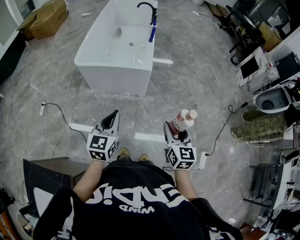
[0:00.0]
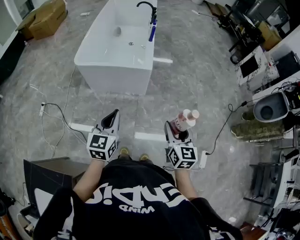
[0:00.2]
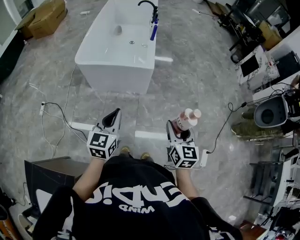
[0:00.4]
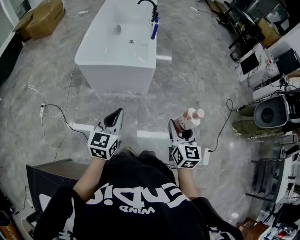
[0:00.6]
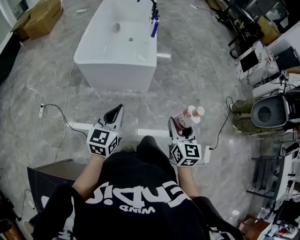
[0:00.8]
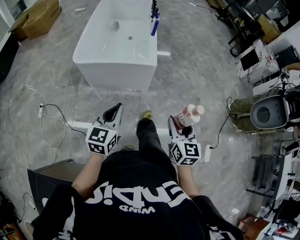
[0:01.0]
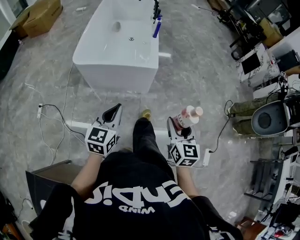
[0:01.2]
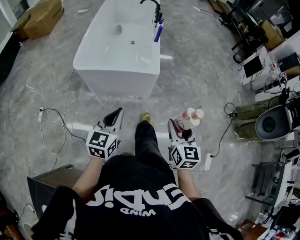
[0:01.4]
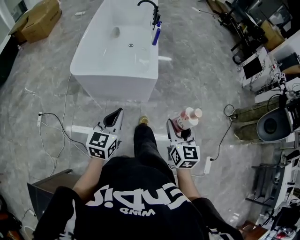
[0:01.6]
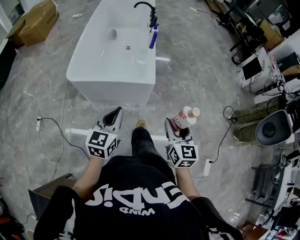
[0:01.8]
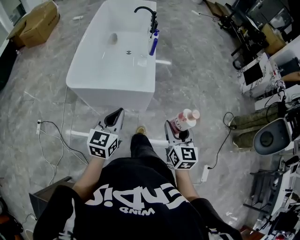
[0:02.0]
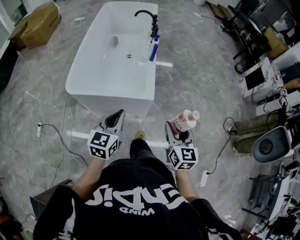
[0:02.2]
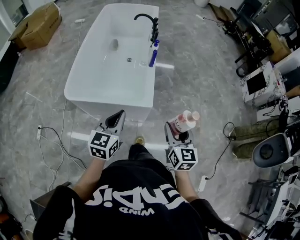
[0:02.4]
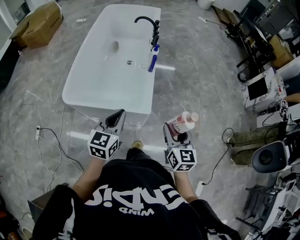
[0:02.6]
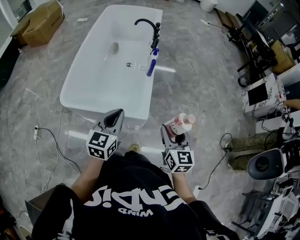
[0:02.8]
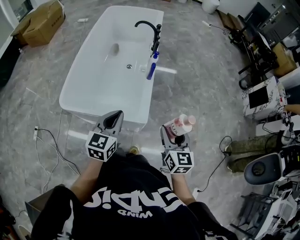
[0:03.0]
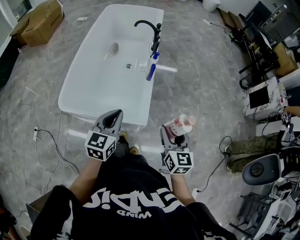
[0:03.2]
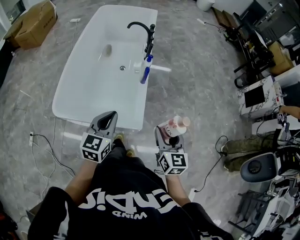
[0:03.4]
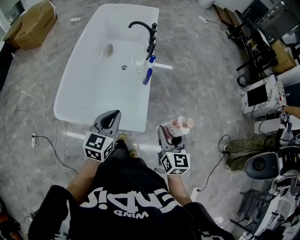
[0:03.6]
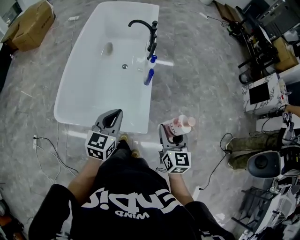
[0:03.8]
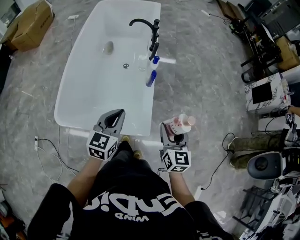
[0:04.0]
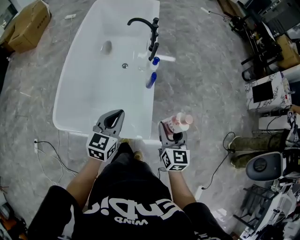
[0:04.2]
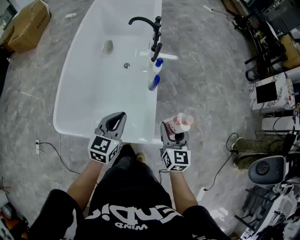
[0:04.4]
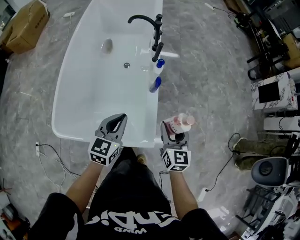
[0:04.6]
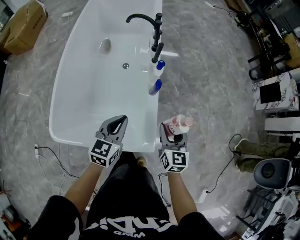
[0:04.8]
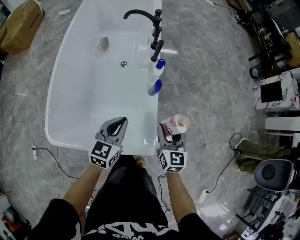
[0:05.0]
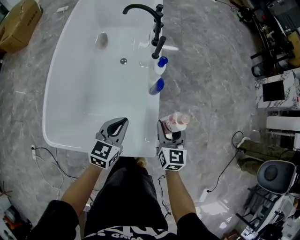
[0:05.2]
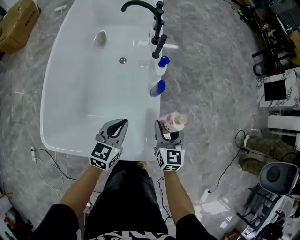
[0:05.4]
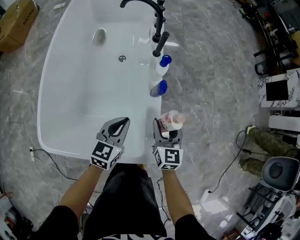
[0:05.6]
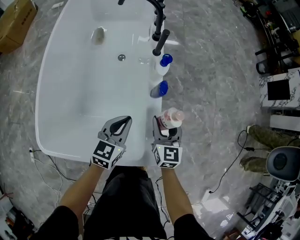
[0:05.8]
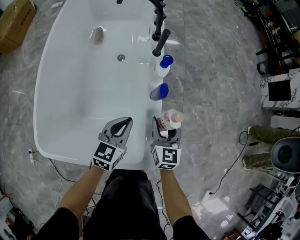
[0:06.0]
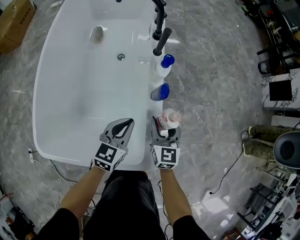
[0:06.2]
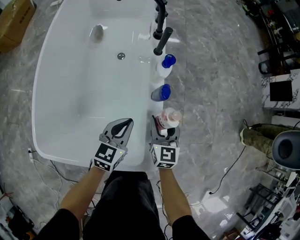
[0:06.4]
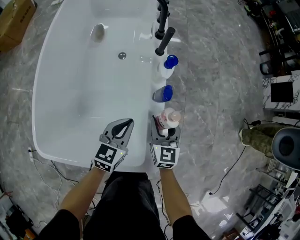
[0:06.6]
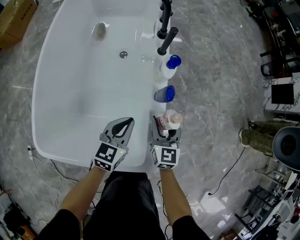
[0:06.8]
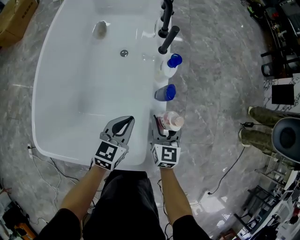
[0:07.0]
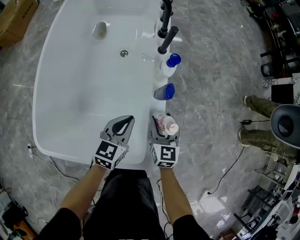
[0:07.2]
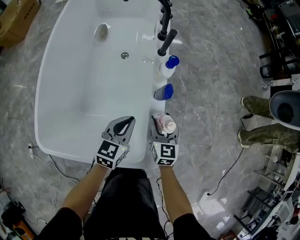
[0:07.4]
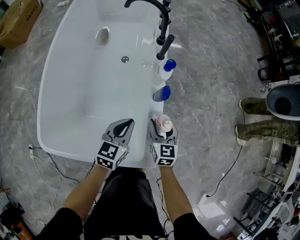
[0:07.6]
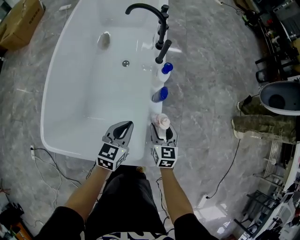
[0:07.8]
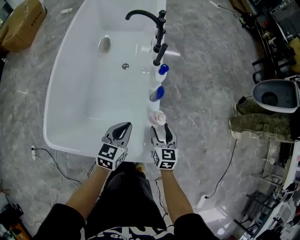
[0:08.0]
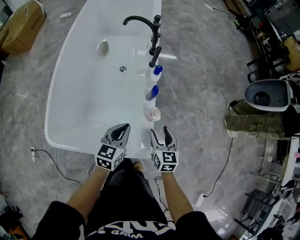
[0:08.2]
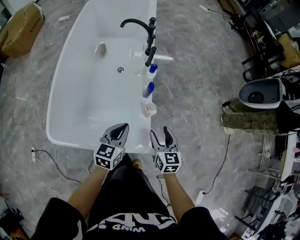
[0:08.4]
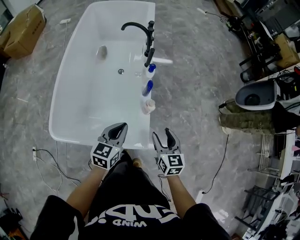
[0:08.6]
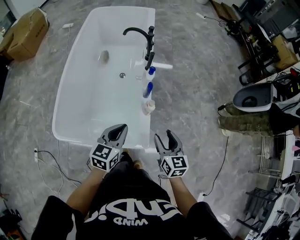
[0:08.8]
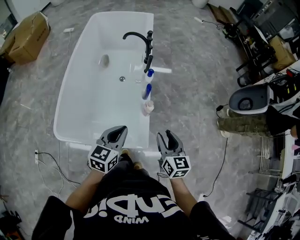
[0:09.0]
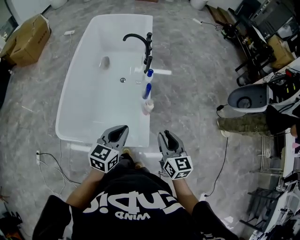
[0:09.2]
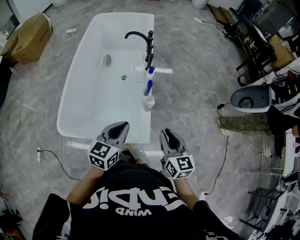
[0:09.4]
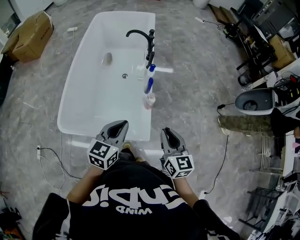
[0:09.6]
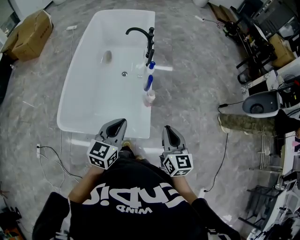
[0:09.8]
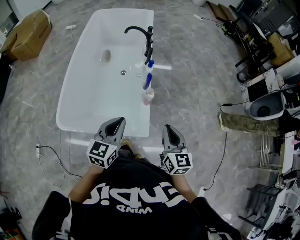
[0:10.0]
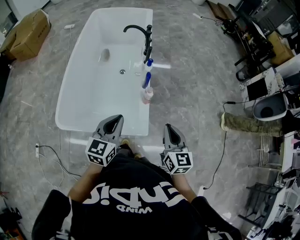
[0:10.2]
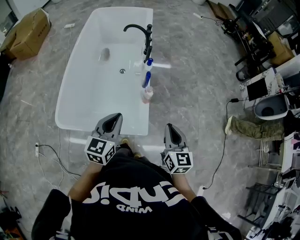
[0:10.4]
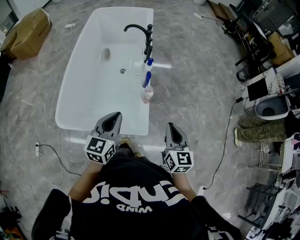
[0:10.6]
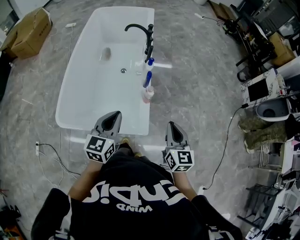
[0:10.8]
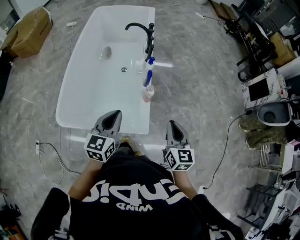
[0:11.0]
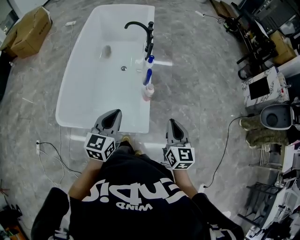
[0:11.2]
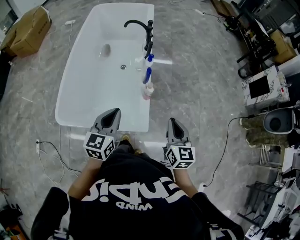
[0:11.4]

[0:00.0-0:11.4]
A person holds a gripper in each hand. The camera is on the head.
0:00.0 to 0:01.4: Both grippers travel together forward and to the left, some 10 cm.
0:01.4 to 0:02.8: Both grippers move forward, roughly 35 cm.
0:02.8 to 0:04.2: Both grippers travel together forward, about 20 cm.
0:04.2 to 0:05.6: The grippers both shift downward and forward by roughly 25 cm.
0:05.6 to 0:07.2: The right gripper is displaced downward by about 5 cm; the left gripper shifts by some 5 cm.
0:07.2 to 0:08.6: The grippers both shift upward and backward by approximately 20 cm.
0:08.6 to 0:10.0: The grippers both shift upward and backward by some 15 cm. The right gripper closes.
0:10.0 to 0:11.4: The grippers make only small movements.

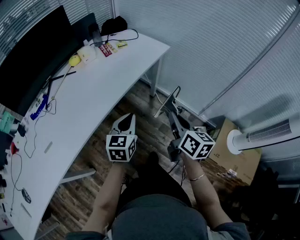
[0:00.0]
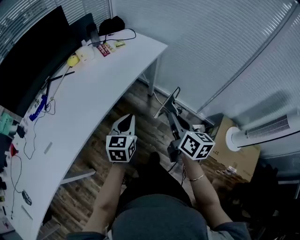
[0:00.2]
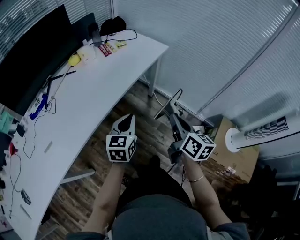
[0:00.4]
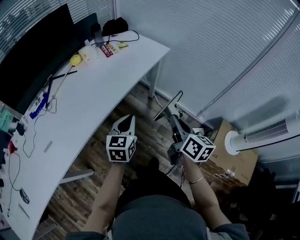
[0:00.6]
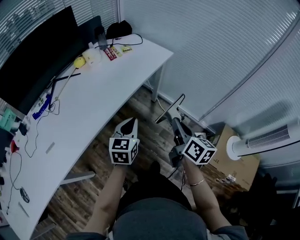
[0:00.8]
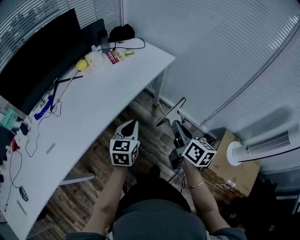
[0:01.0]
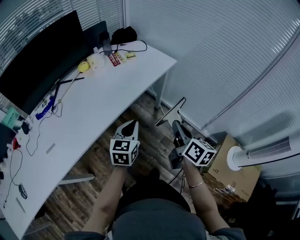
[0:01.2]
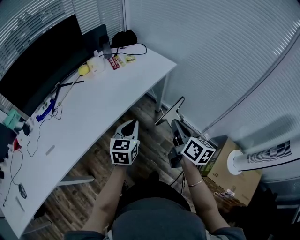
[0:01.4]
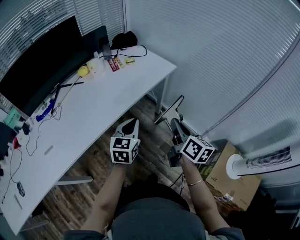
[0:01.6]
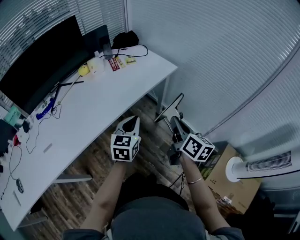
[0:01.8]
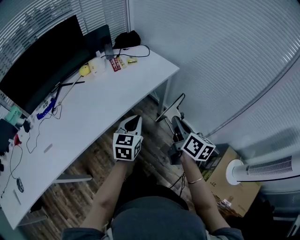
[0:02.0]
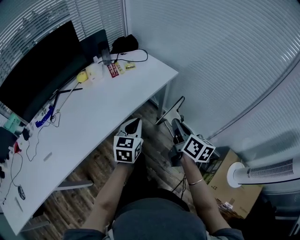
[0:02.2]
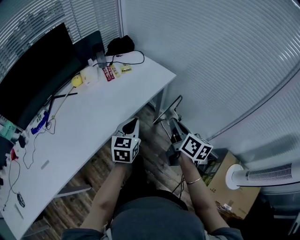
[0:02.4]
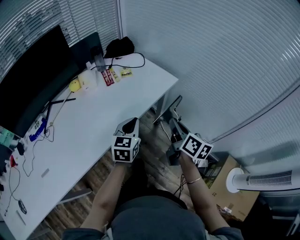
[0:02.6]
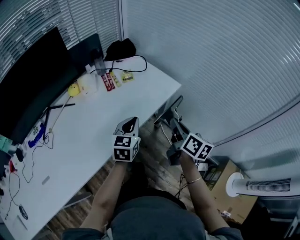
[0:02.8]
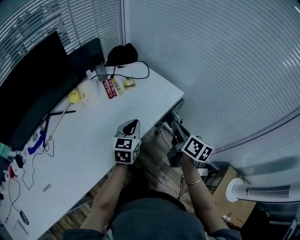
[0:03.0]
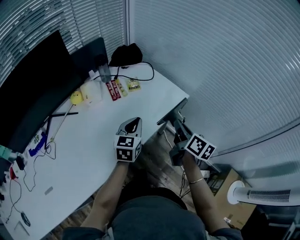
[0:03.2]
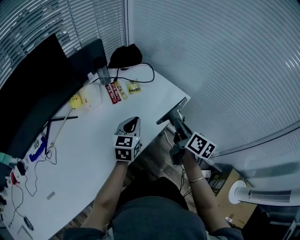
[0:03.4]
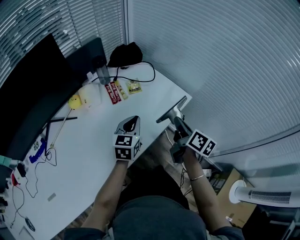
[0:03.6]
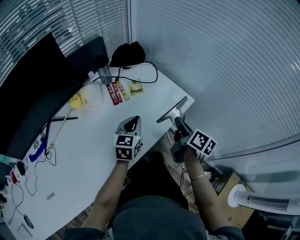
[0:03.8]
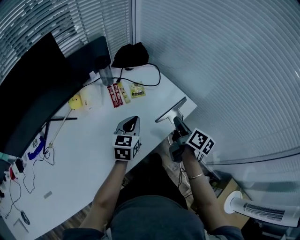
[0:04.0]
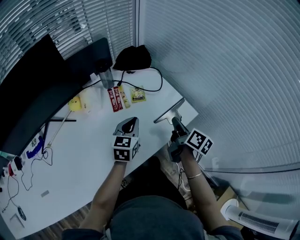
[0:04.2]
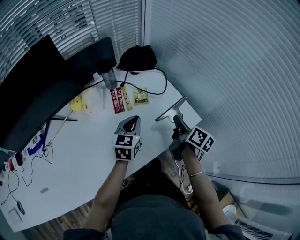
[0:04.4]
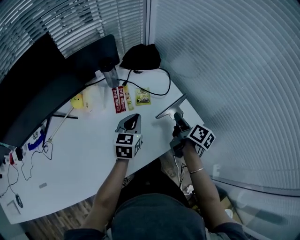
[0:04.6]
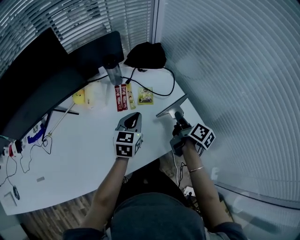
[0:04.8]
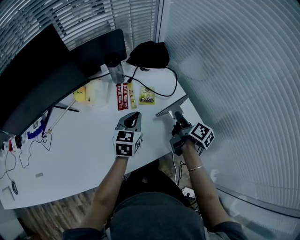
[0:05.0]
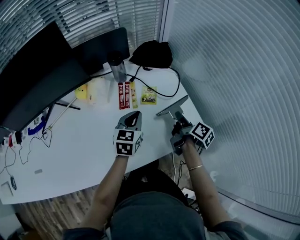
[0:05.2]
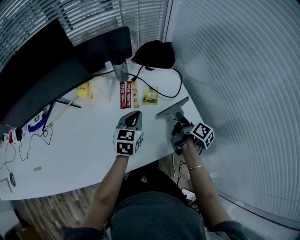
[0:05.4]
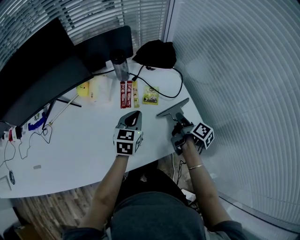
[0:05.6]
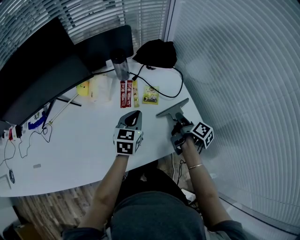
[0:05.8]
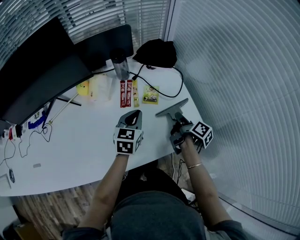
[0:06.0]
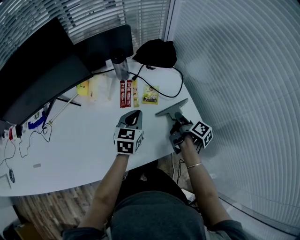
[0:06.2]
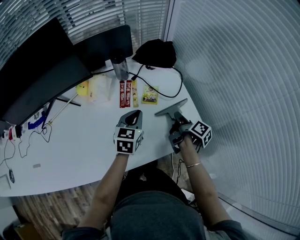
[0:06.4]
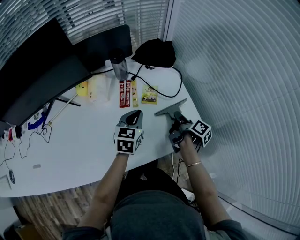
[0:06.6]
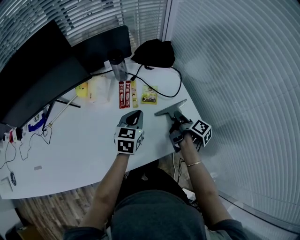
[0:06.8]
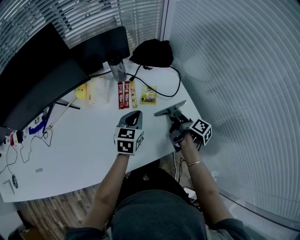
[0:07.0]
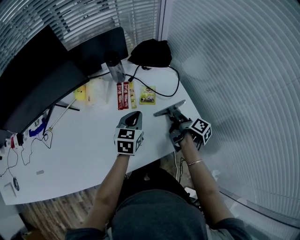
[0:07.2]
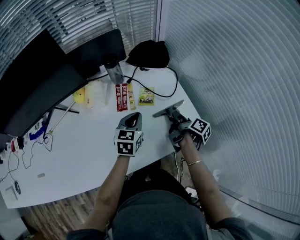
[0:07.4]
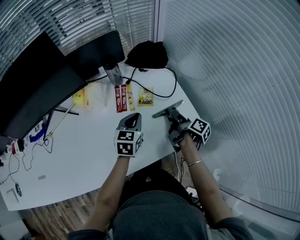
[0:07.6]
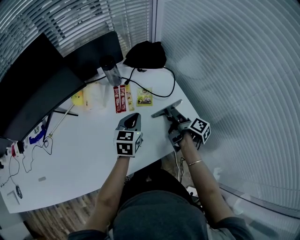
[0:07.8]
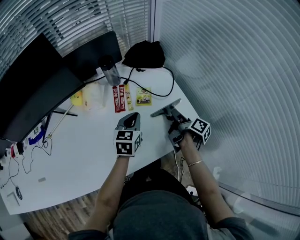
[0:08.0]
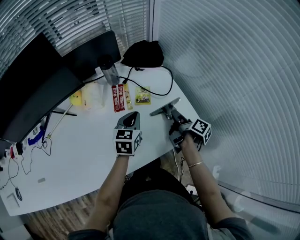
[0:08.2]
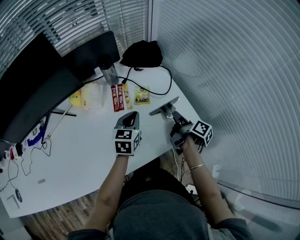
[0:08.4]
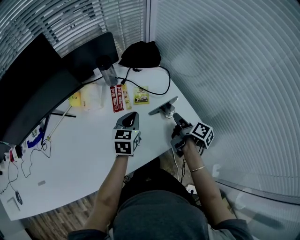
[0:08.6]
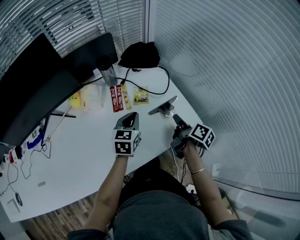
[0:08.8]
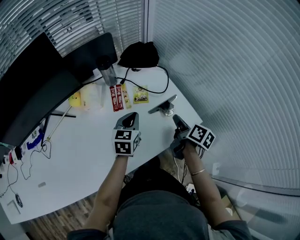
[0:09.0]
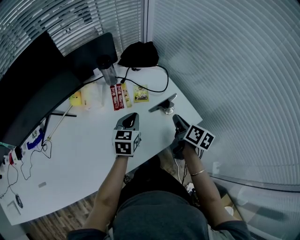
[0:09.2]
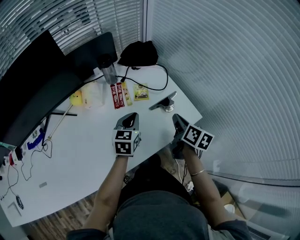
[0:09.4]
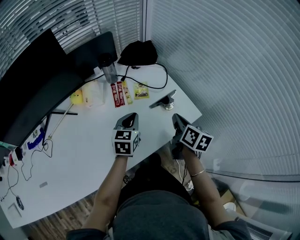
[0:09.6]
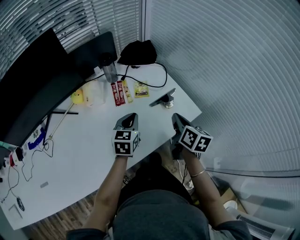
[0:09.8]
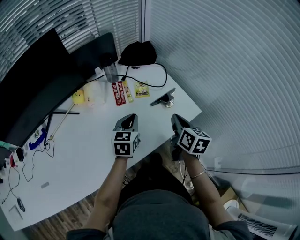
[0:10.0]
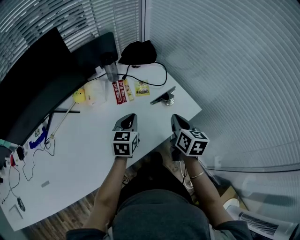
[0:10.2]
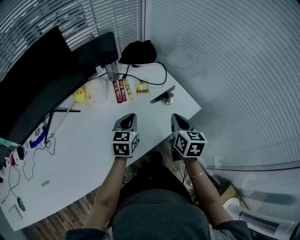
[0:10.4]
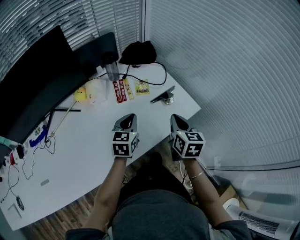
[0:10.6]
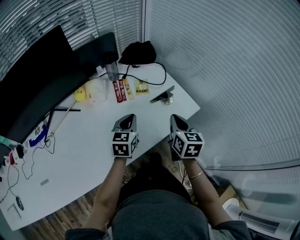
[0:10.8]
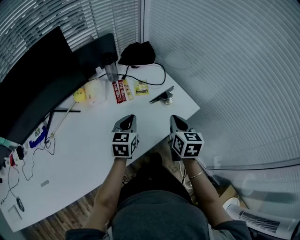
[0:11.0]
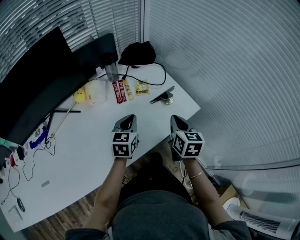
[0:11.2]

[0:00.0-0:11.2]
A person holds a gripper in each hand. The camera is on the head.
0:00.0 to 0:01.6: The grippers both shift forward by roughly 5 cm.
0:01.6 to 0:03.2: Both grippers move forward, approximately 25 cm.
0:03.2 to 0:04.8: The two grippers go some 20 cm forward. The right gripper turns by some 20 degrees.
0:04.8 to 0:06.4: The right gripper is displaced downward by about 5 cm.
0:06.4 to 0:08.0: The right gripper opens.
0:08.0 to 0:09.6: The right gripper moves backward and upward, approximately 10 cm, twists approximately 40 degrees counterclockwise, seen from behind, and closes.
0:09.6 to 0:11.2: The right gripper goes some 5 cm backward, and rotates roughly 20 degrees; the left gripper moves some 5 cm.

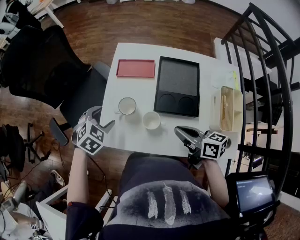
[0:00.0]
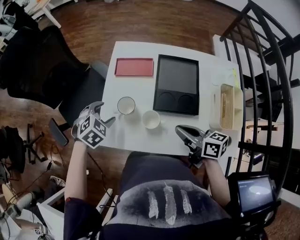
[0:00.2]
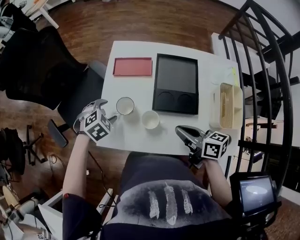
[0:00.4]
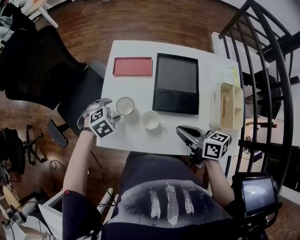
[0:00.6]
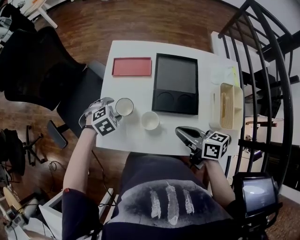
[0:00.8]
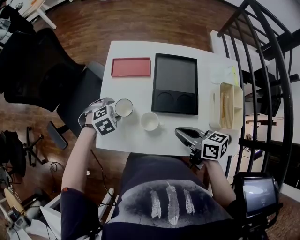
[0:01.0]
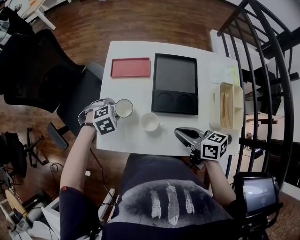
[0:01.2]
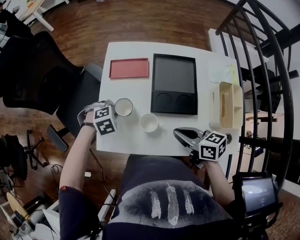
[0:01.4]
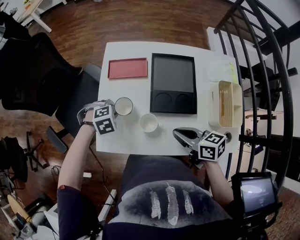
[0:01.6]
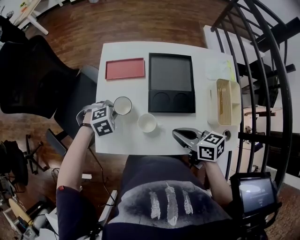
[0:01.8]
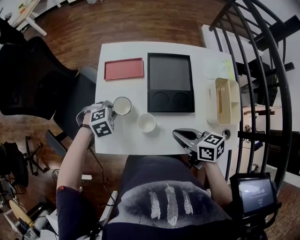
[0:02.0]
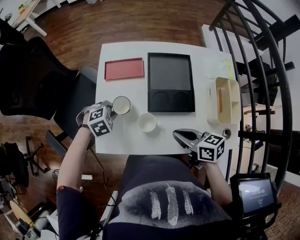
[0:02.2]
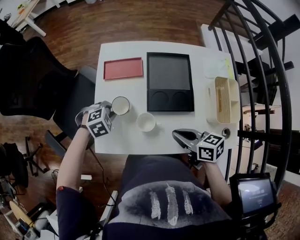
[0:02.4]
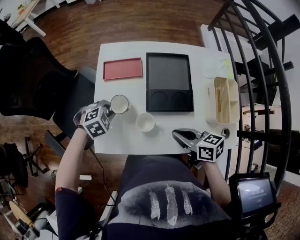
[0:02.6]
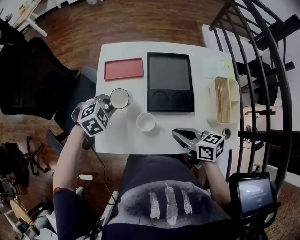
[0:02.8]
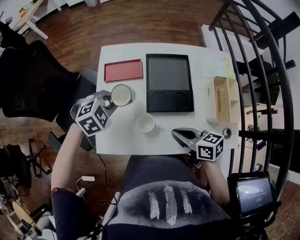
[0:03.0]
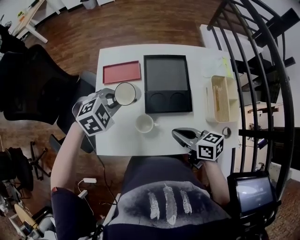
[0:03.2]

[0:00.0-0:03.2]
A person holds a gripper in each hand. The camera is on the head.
0:00.0 to 0:01.6: The left gripper goes about 10 cm downward, swivels some 40 degrees, and closes its fingers.
0:01.6 to 0:03.2: The left gripper goes about 10 cm upward, and swivels some 20 degrees.
